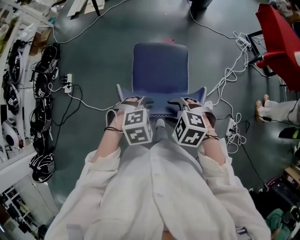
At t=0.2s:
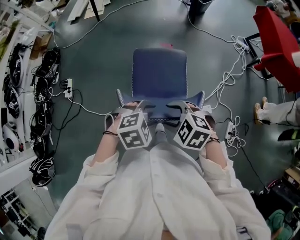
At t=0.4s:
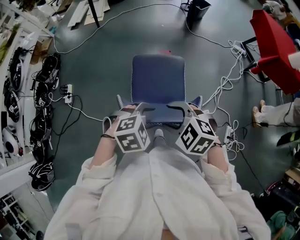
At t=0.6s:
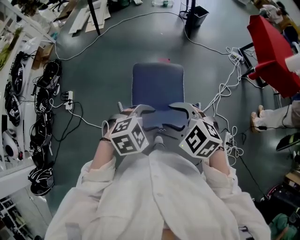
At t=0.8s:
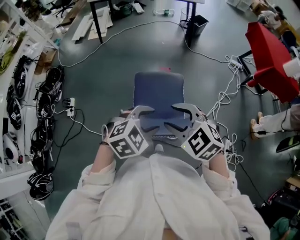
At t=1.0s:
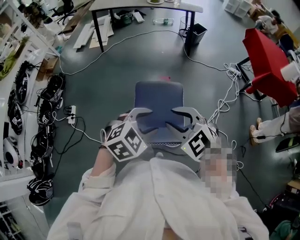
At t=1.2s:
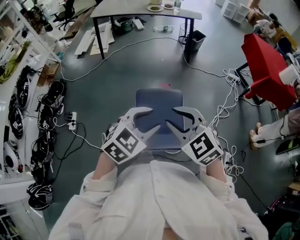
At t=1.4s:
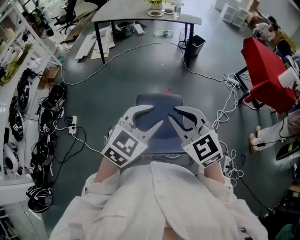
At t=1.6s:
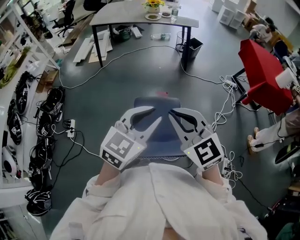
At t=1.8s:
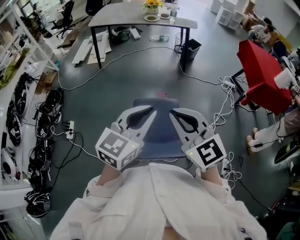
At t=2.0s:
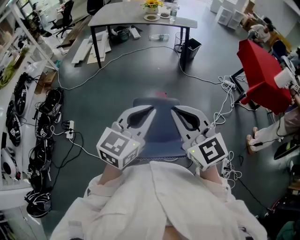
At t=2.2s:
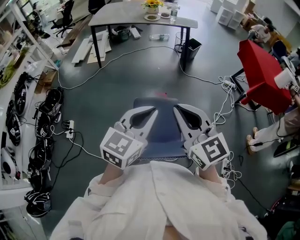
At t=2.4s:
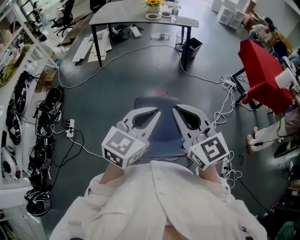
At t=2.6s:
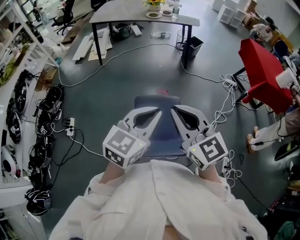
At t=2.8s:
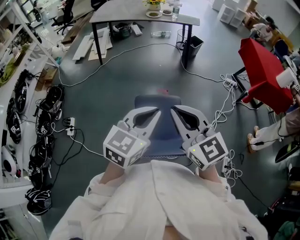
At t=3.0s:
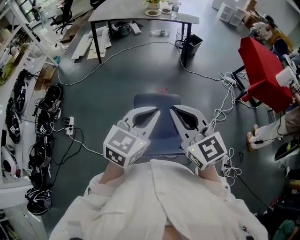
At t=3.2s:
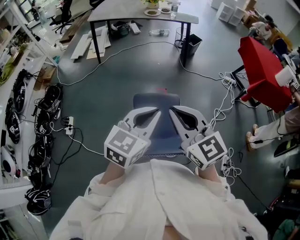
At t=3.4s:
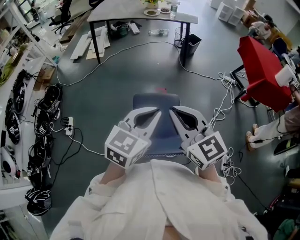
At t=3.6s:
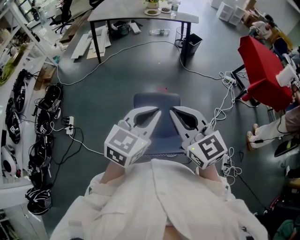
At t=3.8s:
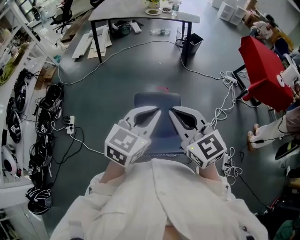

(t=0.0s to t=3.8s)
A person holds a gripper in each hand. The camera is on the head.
t=0.0s - t=1.2s: The two grippers go approximately 20 cm upward. The right gripper angles its fingers upward, by approximately 30 degrees, while the left gripper tilts its fingers about 30 degrees upward.
t=1.2s - t=2.6s: Both grippers move upward, some 10 cm. The right gripper swivels some 30 degrees, and closes its fingers, while the left gripper changes its angle by about 30 degrees, and closes its fingers.
t=2.6s - t=3.8s: The grippers move only a little.

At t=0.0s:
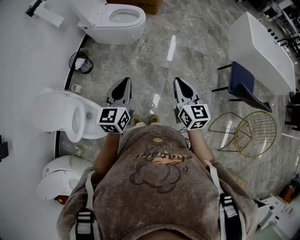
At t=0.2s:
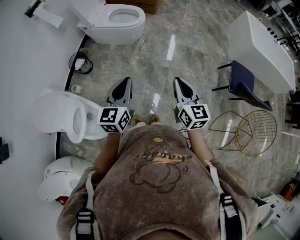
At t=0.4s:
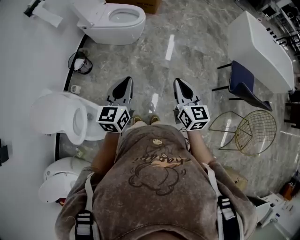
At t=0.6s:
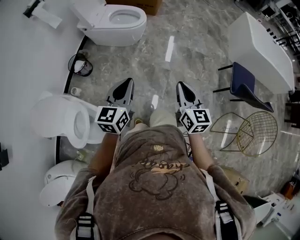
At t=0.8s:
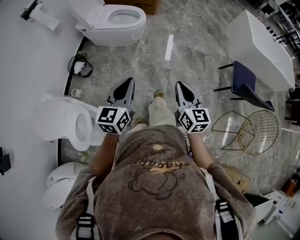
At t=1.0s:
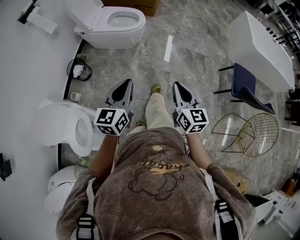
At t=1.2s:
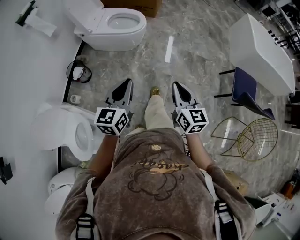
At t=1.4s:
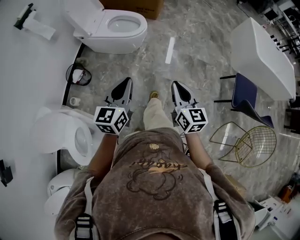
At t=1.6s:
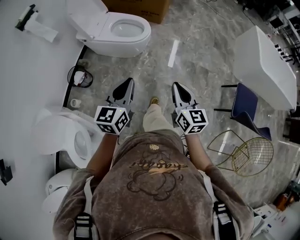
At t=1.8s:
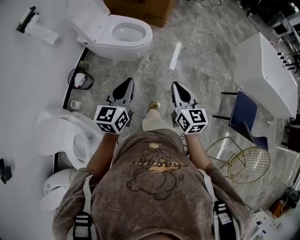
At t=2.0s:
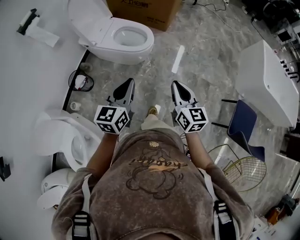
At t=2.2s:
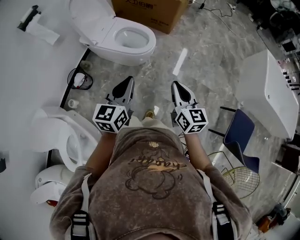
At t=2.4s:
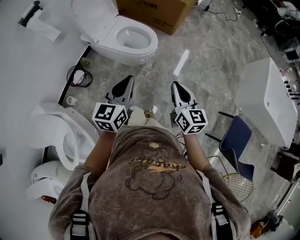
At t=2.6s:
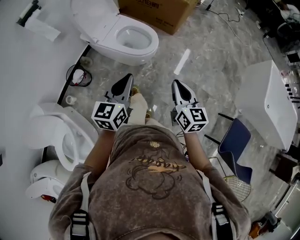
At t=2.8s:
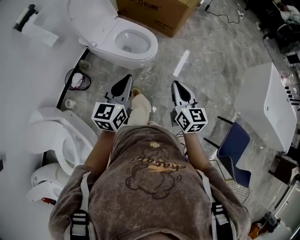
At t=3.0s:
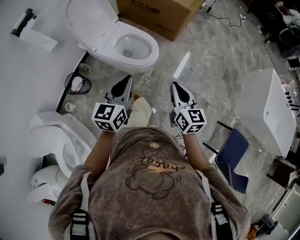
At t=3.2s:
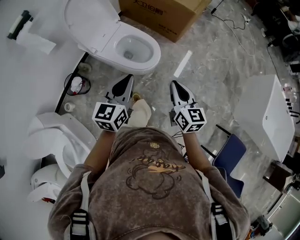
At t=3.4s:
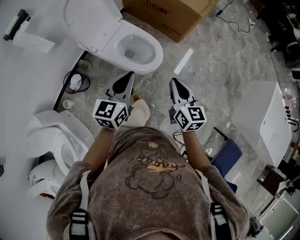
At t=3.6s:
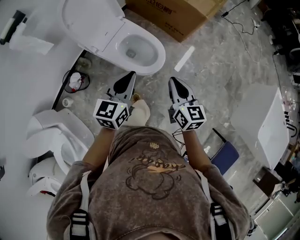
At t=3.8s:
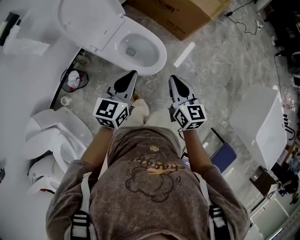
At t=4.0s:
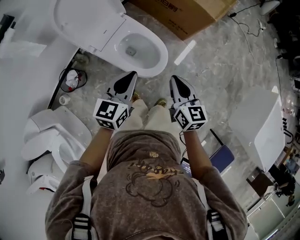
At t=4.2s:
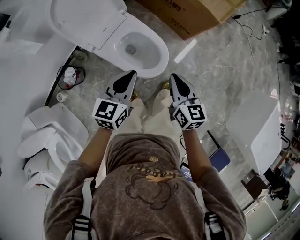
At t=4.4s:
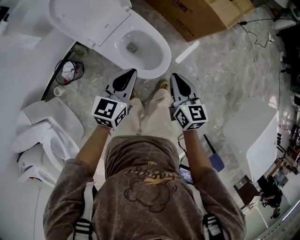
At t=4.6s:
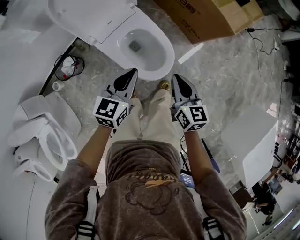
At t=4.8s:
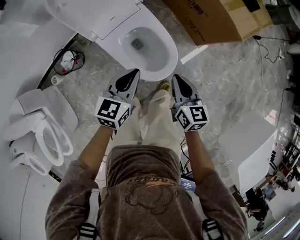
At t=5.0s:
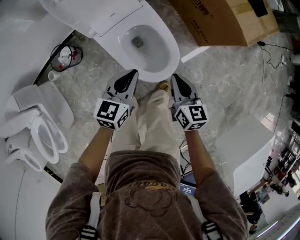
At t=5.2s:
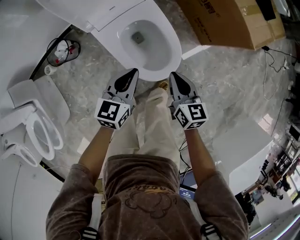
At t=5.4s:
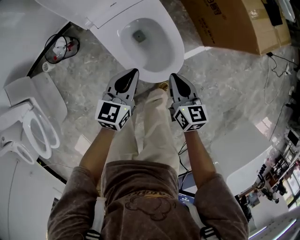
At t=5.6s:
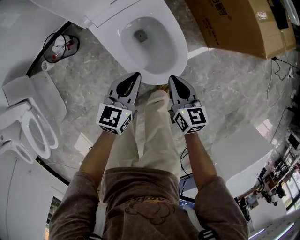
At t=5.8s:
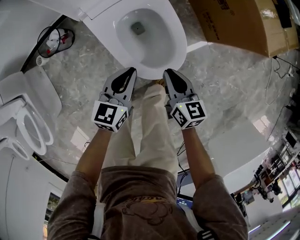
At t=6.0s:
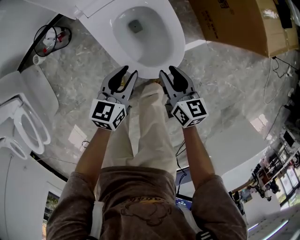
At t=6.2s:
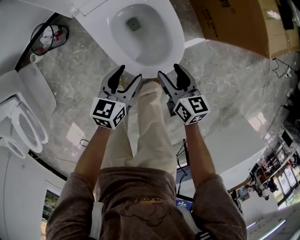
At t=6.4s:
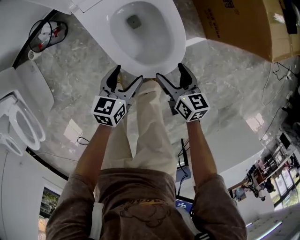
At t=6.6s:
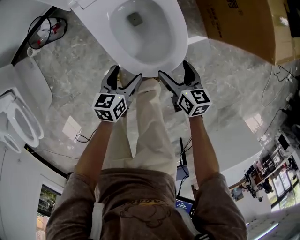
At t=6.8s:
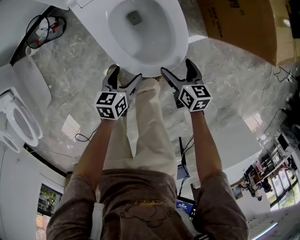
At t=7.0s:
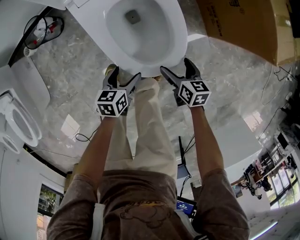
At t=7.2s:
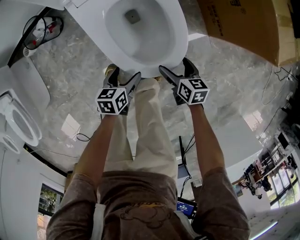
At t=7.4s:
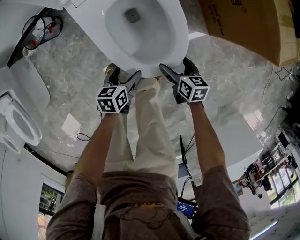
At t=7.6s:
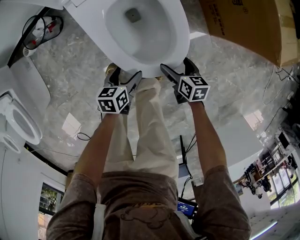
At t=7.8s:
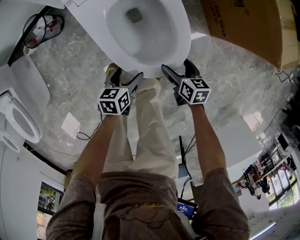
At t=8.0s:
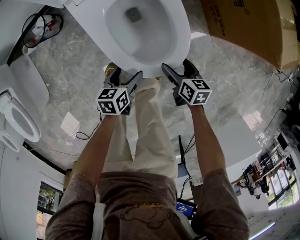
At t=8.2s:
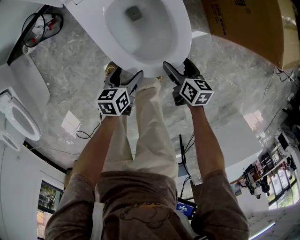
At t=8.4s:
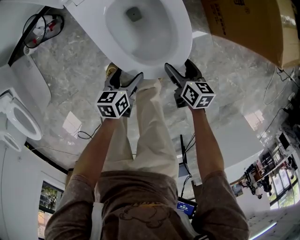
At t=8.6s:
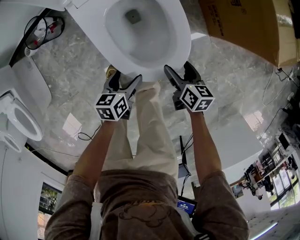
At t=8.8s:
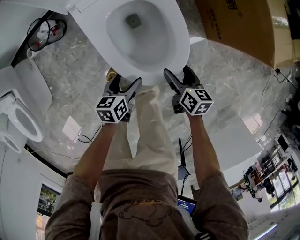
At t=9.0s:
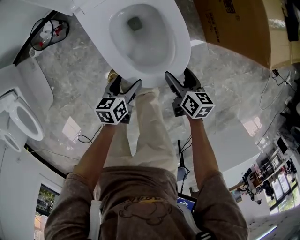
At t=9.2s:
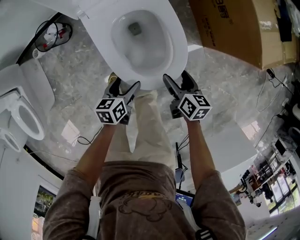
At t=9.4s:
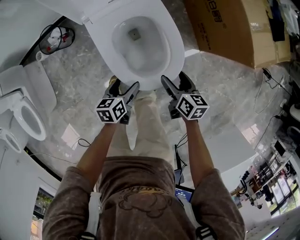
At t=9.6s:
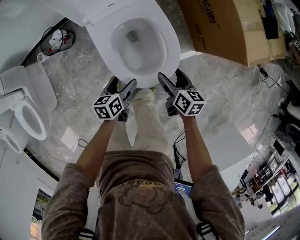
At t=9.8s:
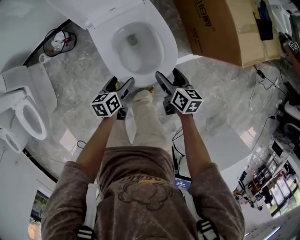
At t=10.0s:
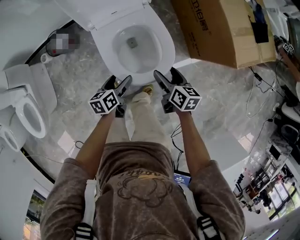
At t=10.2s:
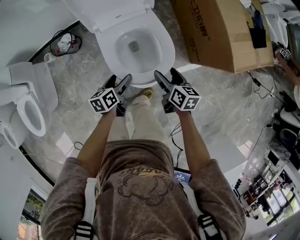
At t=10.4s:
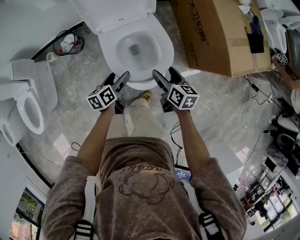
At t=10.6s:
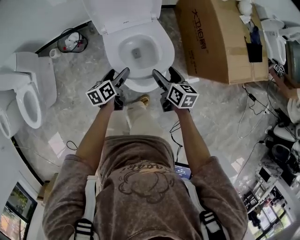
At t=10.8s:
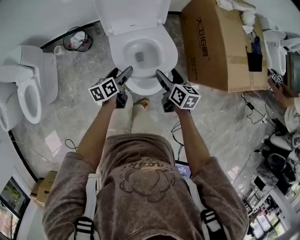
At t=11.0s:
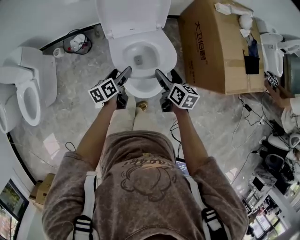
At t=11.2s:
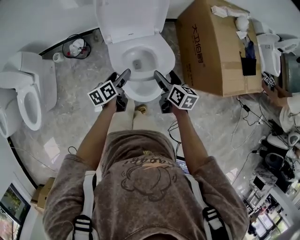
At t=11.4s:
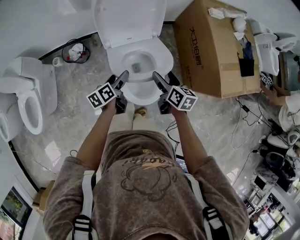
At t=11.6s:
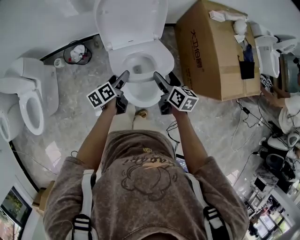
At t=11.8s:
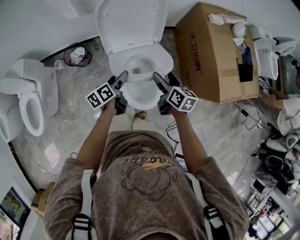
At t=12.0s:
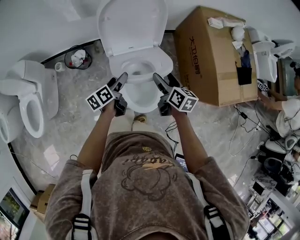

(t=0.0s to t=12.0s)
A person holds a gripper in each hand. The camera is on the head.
t=0.0s - t=1.6s: Both grippers travel together forward, approximately 20 cm.
t=1.6s - t=3.0s: Both grippers travel together forward, roughly 30 cm.
t=3.0s - t=4.4s: The right gripper shifts approximately 30 cm forward. The left gripper is displaced forward and downward by about 30 cm.
t=4.4s - t=6.0s: The two grippers go approximately 25 cm downward. The left gripper rotates roughly 20 degrees, while the right gripper turns by roughly 30 degrees.
t=6.0s - t=7.6s: The grippers both shift downward by about 20 cm. The right gripper swivels approximately 20 degrees, and opens its fingers. The left gripper changes its angle by roughly 30 degrees, and opens.
t=7.6s - t=9.0s: Both grippers travel together upward, approximately 10 cm.
t=9.0s - t=10.4s: The right gripper travels upward by roughly 20 cm. The left gripper shifts approximately 15 cm upward and forward, and turns by about 20 degrees.
t=10.4s - t=12.0s: The two grippers go roughly 15 cm forward and upward.

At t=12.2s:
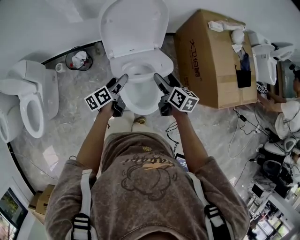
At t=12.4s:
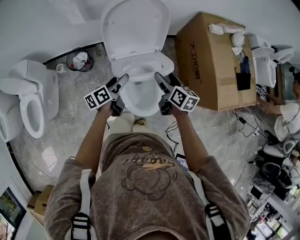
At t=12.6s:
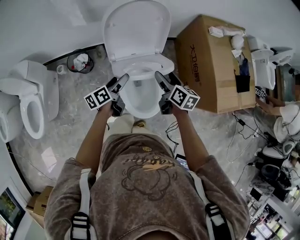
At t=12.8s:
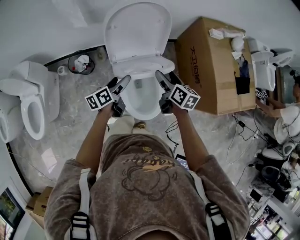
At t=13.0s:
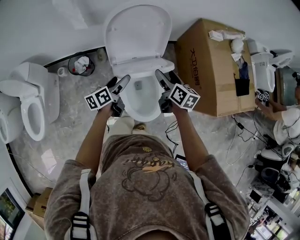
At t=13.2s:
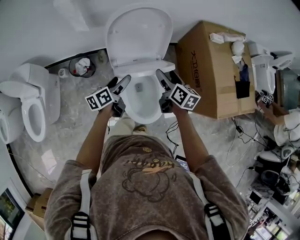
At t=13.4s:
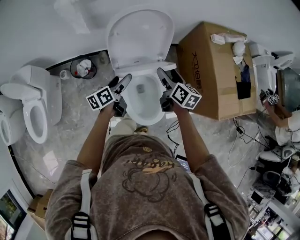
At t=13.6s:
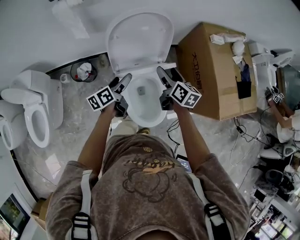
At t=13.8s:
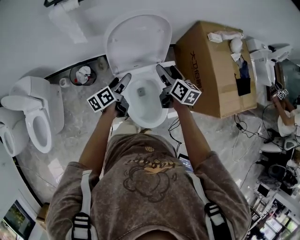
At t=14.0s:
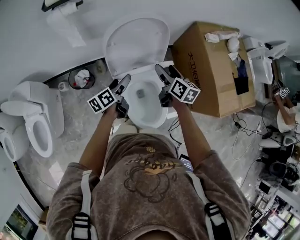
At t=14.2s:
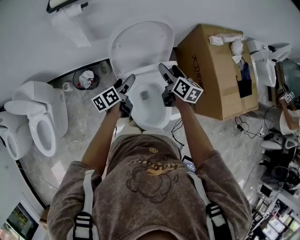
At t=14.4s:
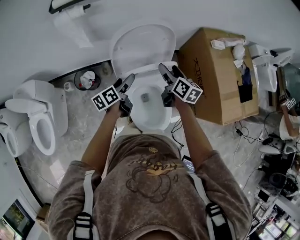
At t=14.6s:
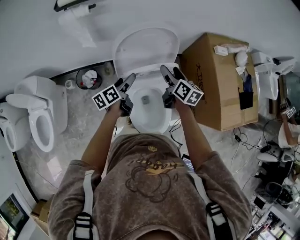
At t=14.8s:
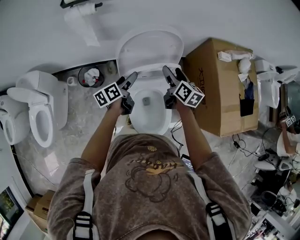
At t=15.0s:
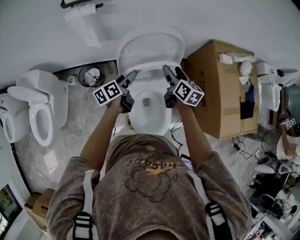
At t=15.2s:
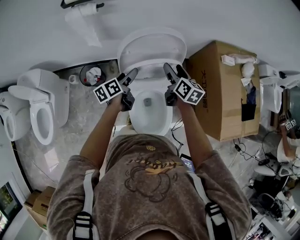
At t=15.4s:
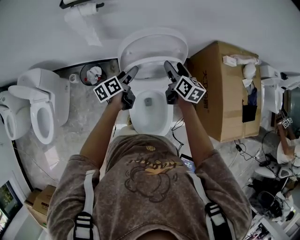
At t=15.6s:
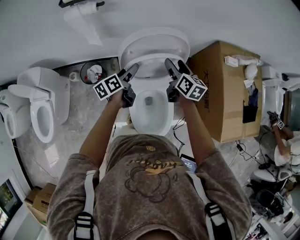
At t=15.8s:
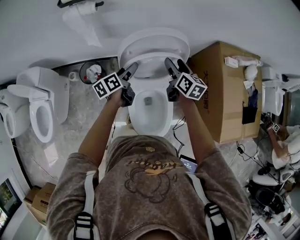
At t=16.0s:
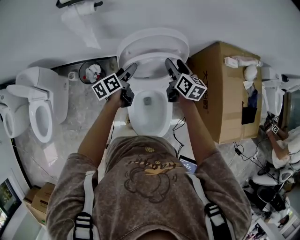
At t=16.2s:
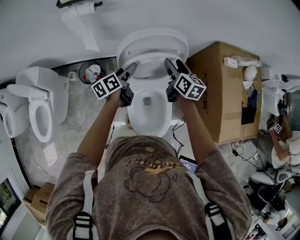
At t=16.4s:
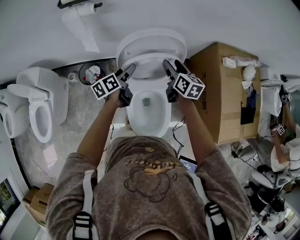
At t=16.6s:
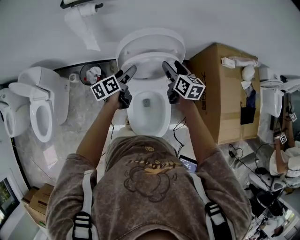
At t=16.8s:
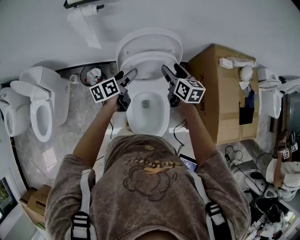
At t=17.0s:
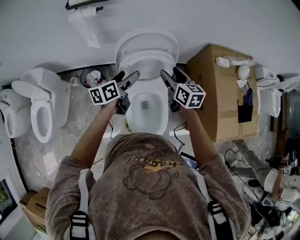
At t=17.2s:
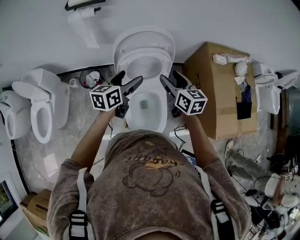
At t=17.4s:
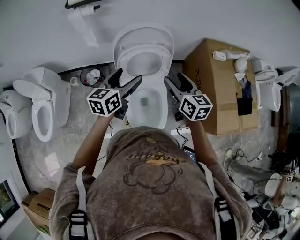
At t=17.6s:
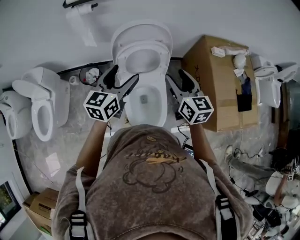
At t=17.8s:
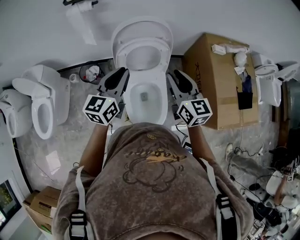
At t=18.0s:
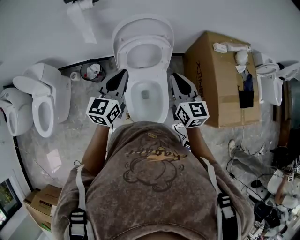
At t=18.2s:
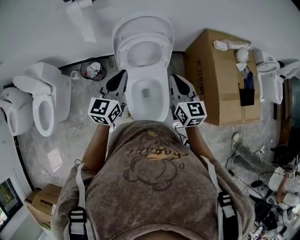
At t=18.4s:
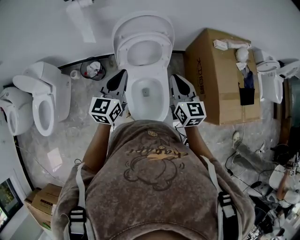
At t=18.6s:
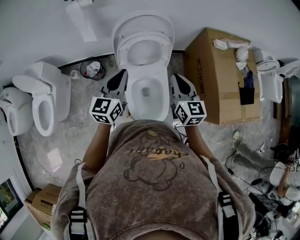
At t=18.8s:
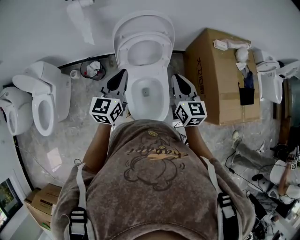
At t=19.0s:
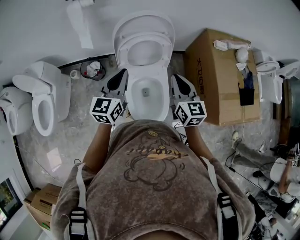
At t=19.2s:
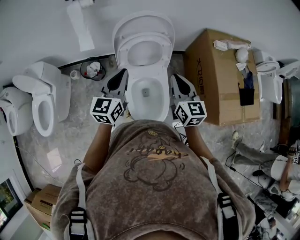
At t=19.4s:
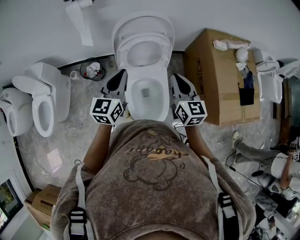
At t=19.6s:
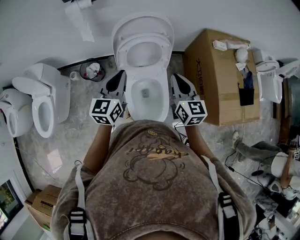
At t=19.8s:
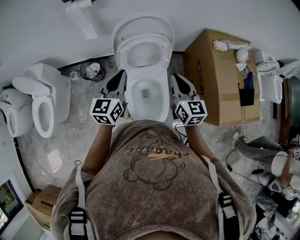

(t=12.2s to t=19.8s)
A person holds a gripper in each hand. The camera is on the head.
t=12.2s - t=13.8s: Both grippers travel together forward, approximately 10 cm.
t=13.8s - t=15.2s: Both grippers travel together forward, about 10 cm.
t=15.2s - t=16.8s: The grippers move only a little.
t=16.8s - t=18.2s: Both grippers move backward and upward, some 20 cm. The left gripper twists some 40 degrees clockwise, seen from behind, and closes its fingers. Meanwhile the right gripper closes its fingers.
t=18.2s - t=19.8s: The grippers make only small movements.
